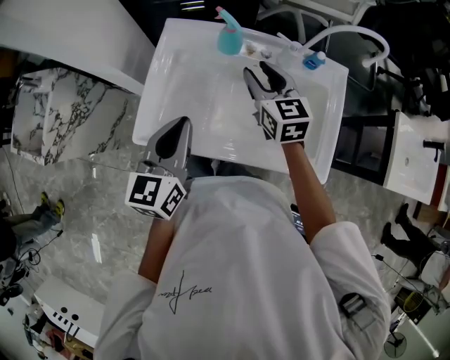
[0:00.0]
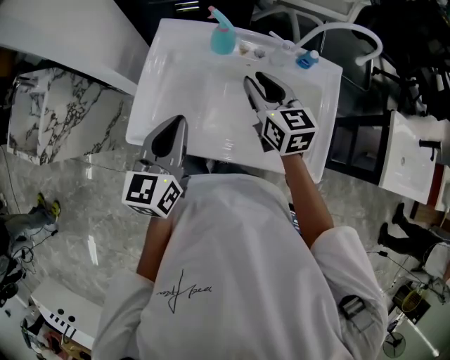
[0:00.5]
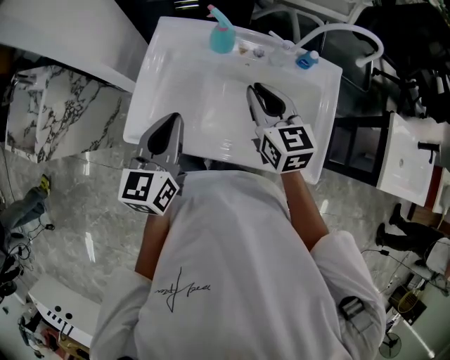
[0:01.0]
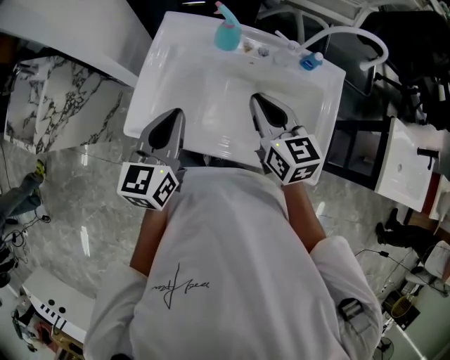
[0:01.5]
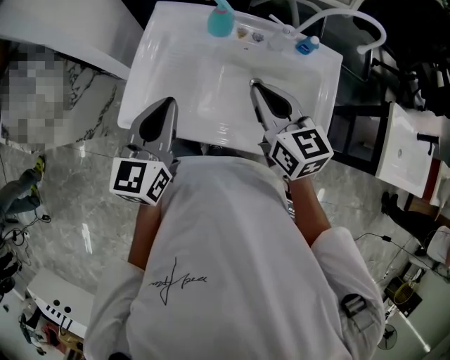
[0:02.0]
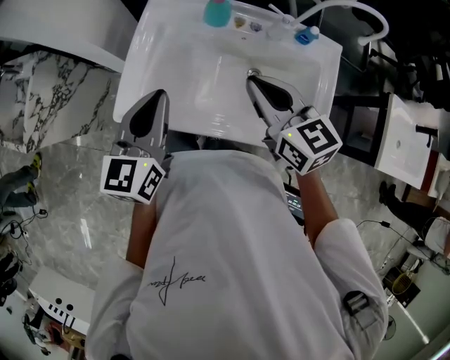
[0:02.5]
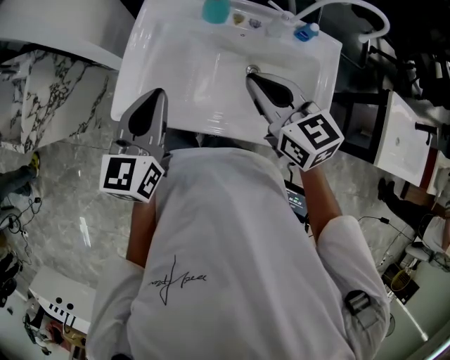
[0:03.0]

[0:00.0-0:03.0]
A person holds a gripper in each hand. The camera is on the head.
0:00.0 to 0:01.5: The right gripper moves backward, some 10 cm, and closes its fingers.
0:01.5 to 0:03.0: There are only small adjustments of the grippers.

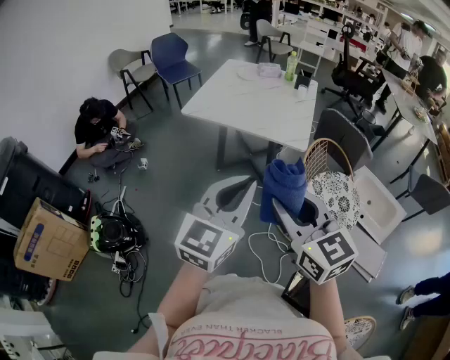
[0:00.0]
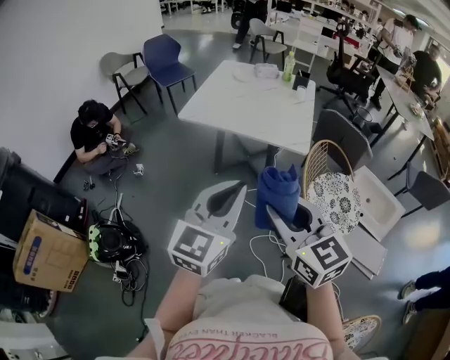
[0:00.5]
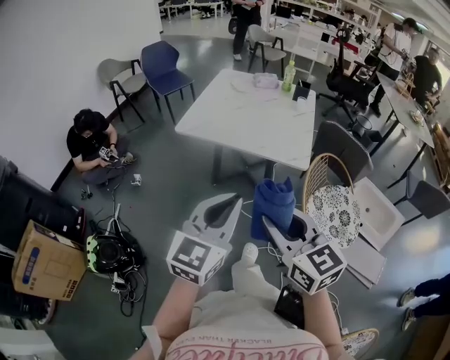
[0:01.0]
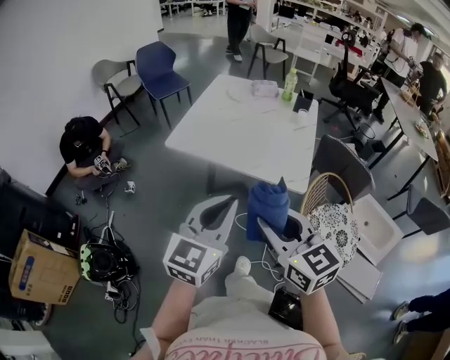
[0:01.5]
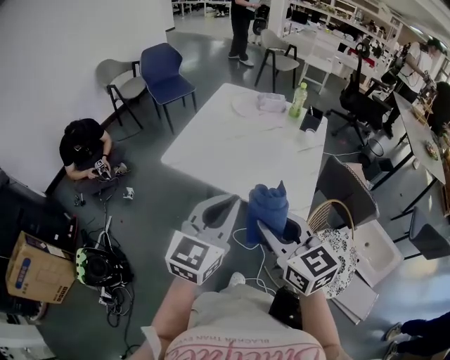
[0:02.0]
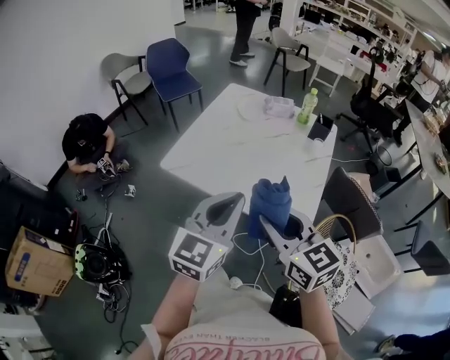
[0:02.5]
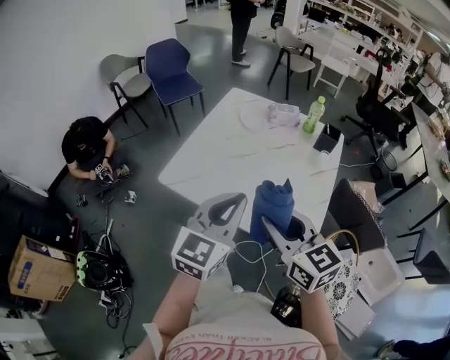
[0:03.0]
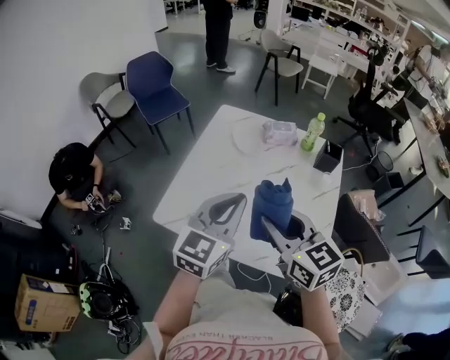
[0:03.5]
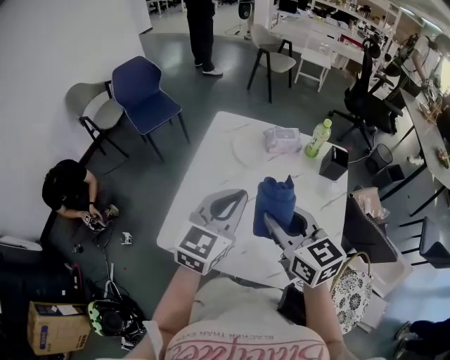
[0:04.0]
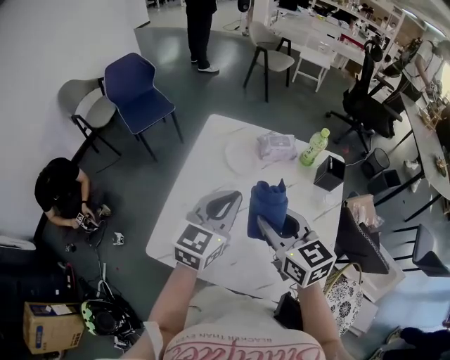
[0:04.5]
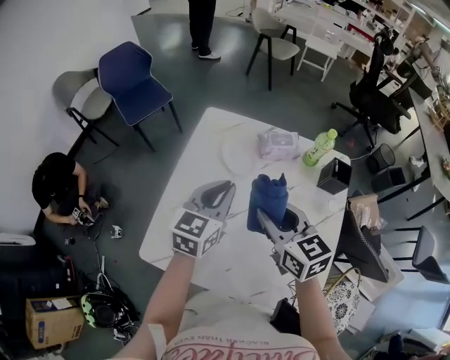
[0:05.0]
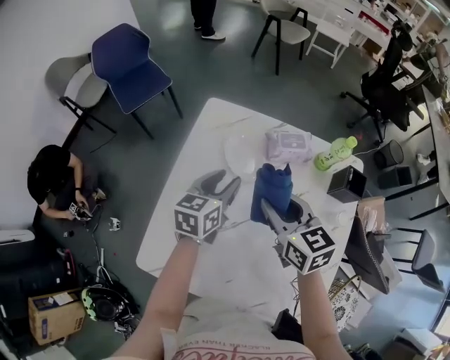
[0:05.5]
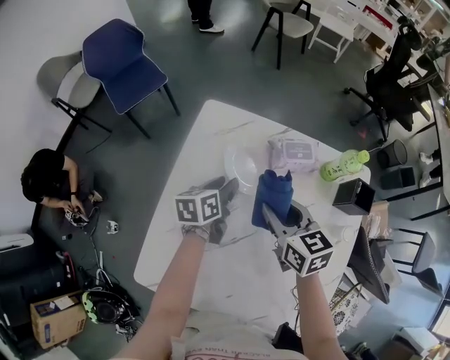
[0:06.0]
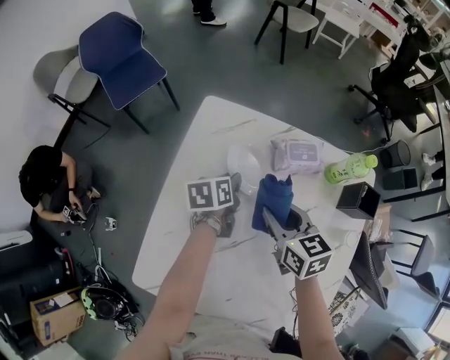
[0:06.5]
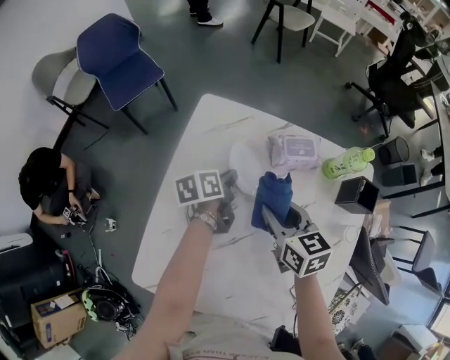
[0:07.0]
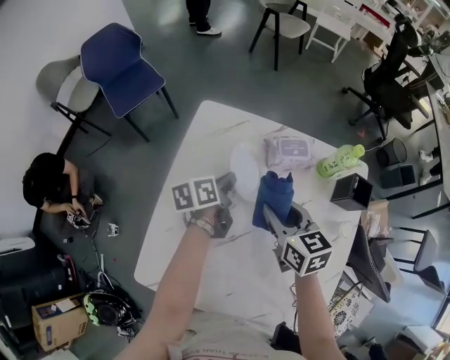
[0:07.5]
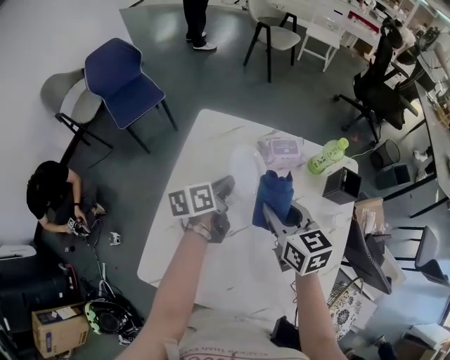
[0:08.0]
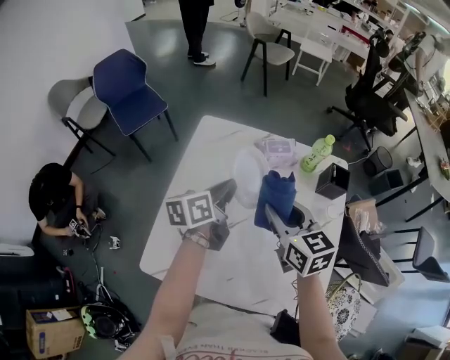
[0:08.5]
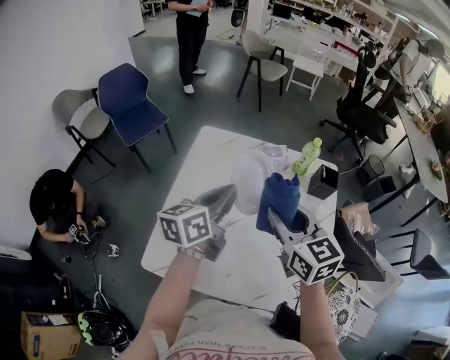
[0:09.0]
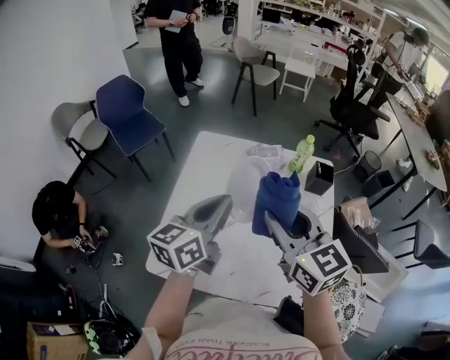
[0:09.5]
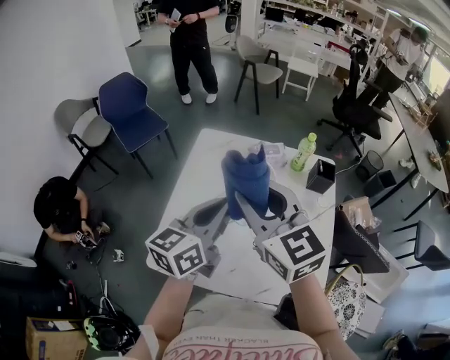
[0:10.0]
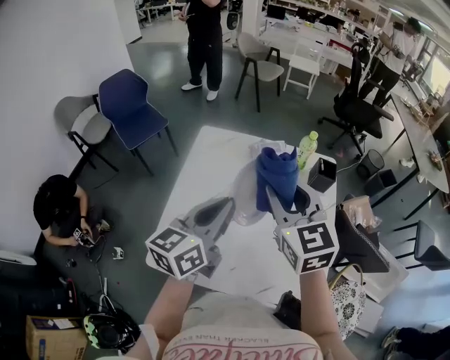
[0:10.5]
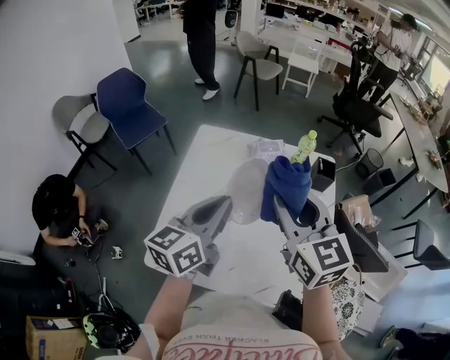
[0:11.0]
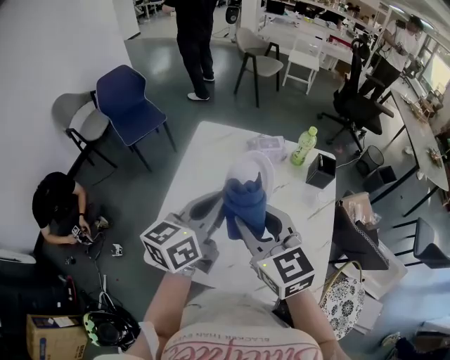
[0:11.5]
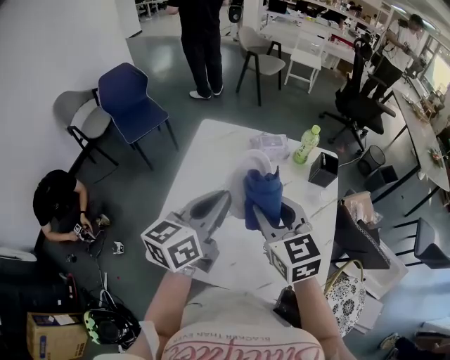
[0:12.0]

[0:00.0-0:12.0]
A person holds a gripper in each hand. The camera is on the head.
0:00.0 to 0:02.0: The two grippers go about 30 cm forward.
0:02.0 to 0:04.0: Both grippers travel together forward, approximately 40 cm.
0:04.0 to 0:06.0: Both grippers travel together forward and downward, some 35 cm. The left gripper twists about 50 degrees counterclockwise, seen from behind, and opens.
0:06.0 to 0:08.0: The left gripper travels upward by about 5 cm, and closes up, while the right gripper shifts by approximately 5 cm.
0:08.0 to 0:10.0: Both grippers travel together upward and backward, about 30 cm. The left gripper changes its angle by approximately 40 degrees, while the right gripper turns by approximately 30 degrees.
0:10.0 to 0:12.0: The right gripper goes about 10 cm downward.

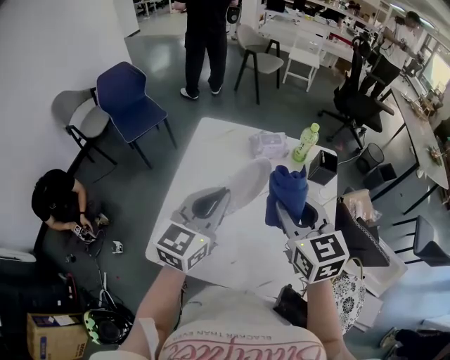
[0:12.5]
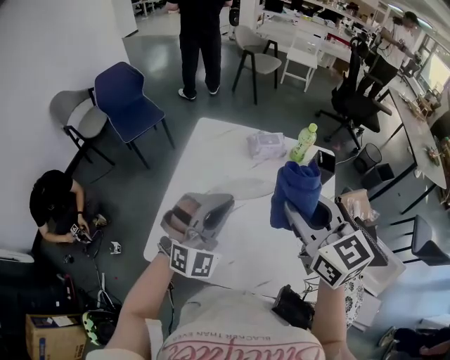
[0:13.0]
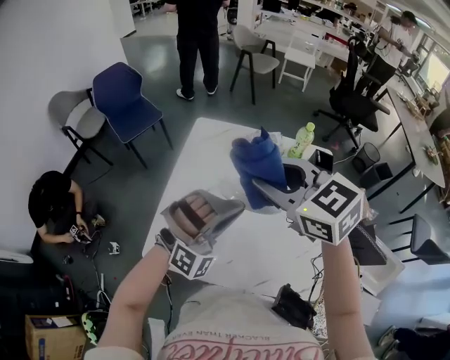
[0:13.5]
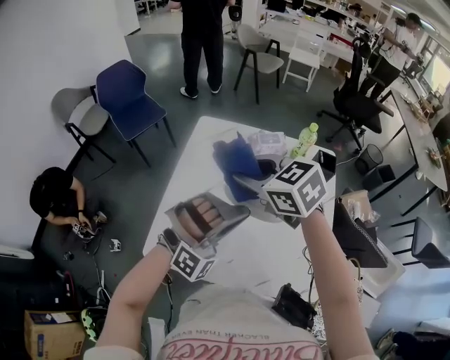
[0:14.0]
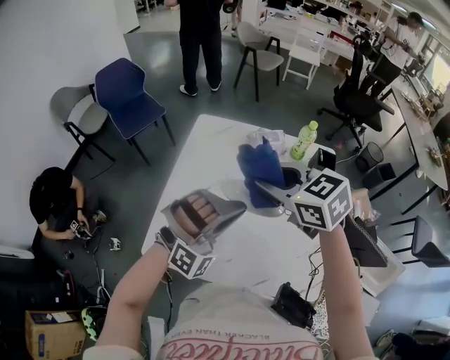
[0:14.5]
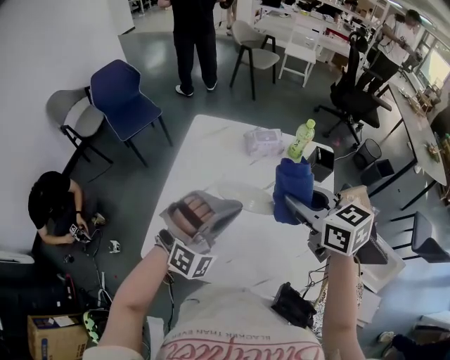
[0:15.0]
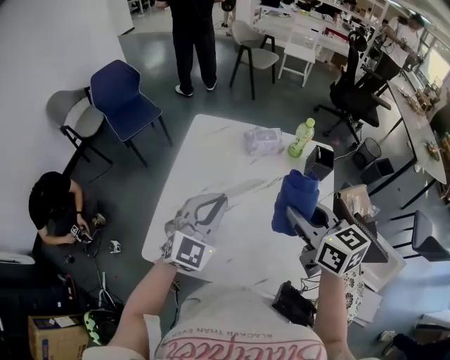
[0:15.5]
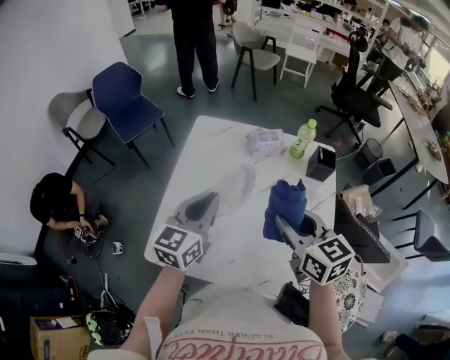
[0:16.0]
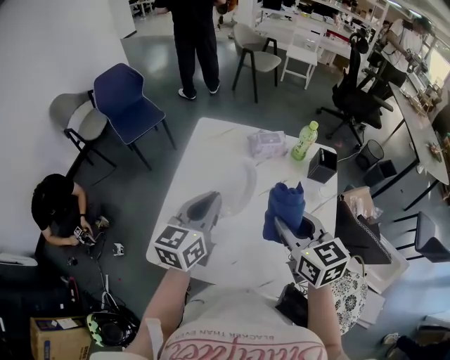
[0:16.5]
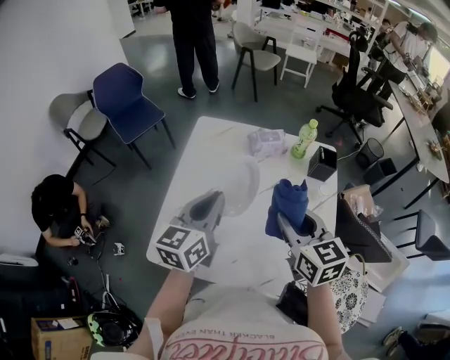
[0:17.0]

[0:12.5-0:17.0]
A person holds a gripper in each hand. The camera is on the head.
0:12.5 to 0:14.5: The left gripper travels to the right by approximately 5 cm, and rotates around the line of its fingers by about 90 degrees, clockwise from behind. The right gripper goes some 5 cm to the left and forward, and turns by roughly 30 degrees.
0:14.5 to 0:17.0: The left gripper is displaced to the left by roughly 10 cm, and rotates around the line of its fingers by approximately 100 degrees, counterclockwise from behind; the right gripper is displaced to the right, backward and downward by about 10 cm, and turns by some 30 degrees.

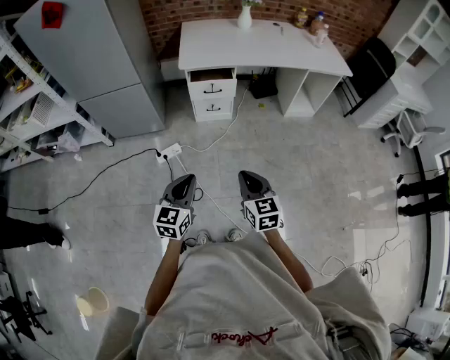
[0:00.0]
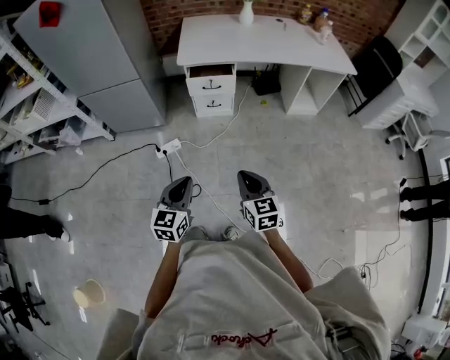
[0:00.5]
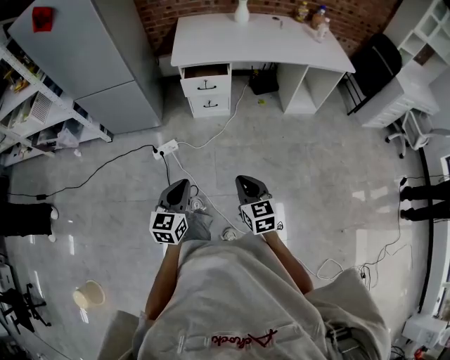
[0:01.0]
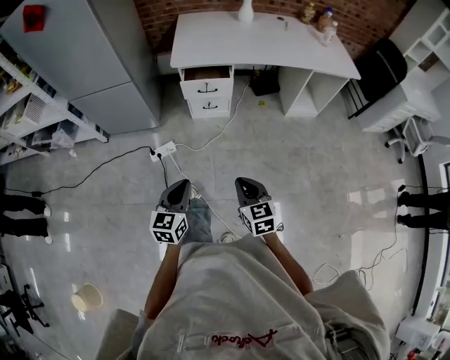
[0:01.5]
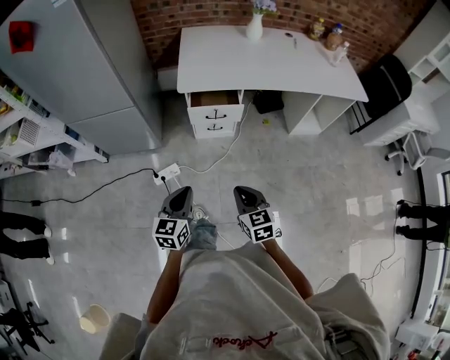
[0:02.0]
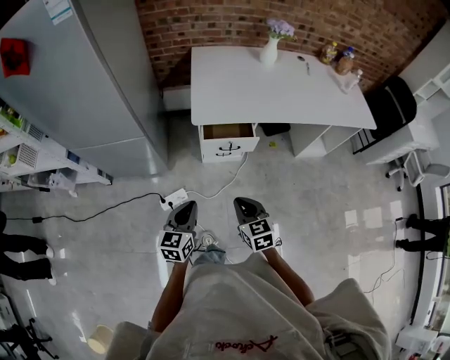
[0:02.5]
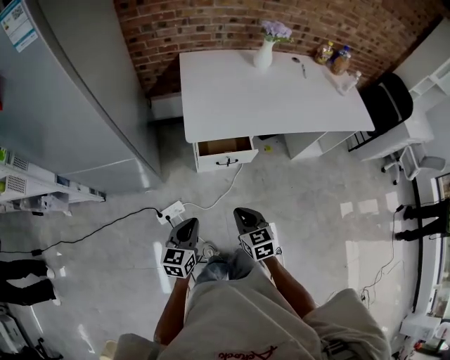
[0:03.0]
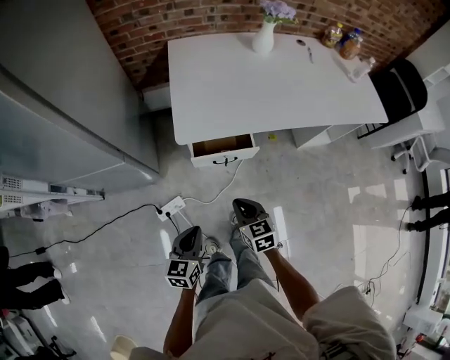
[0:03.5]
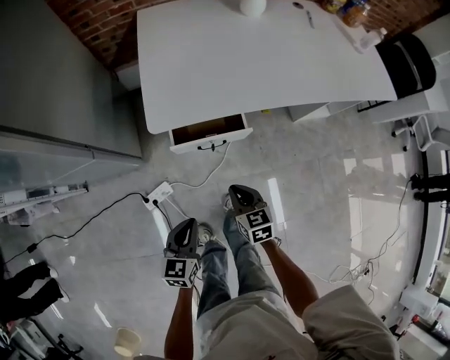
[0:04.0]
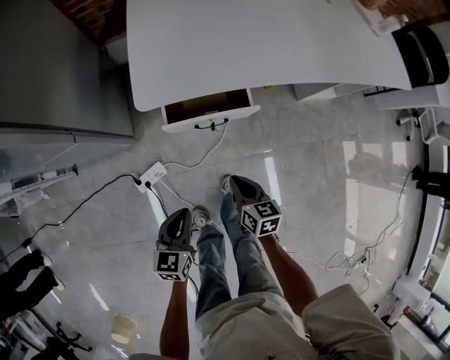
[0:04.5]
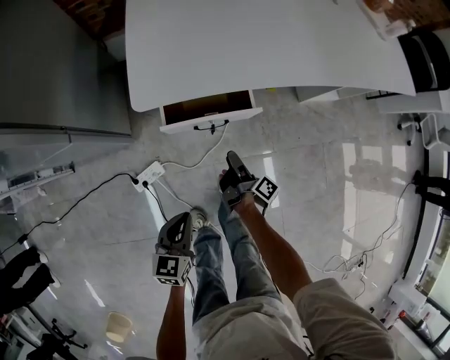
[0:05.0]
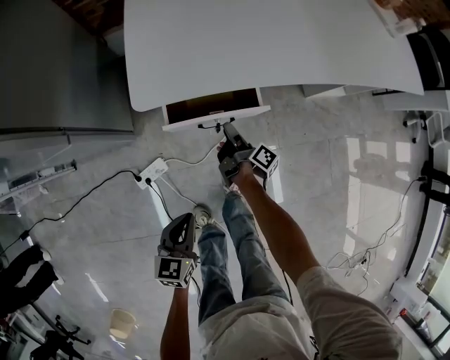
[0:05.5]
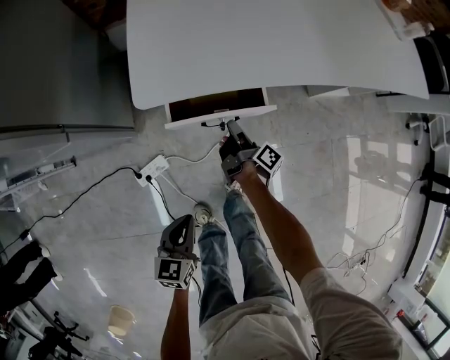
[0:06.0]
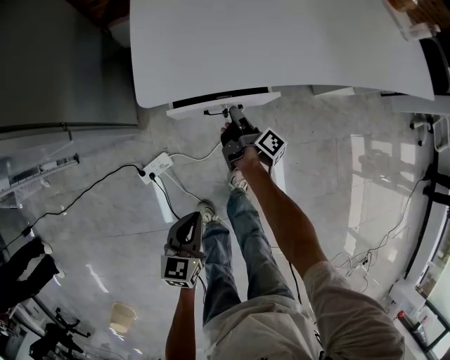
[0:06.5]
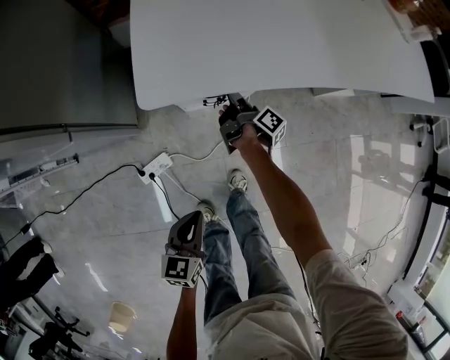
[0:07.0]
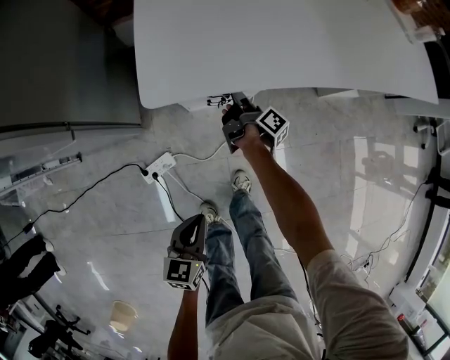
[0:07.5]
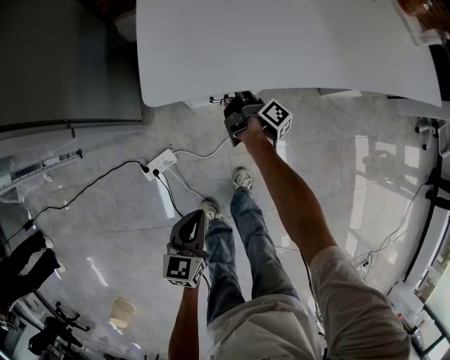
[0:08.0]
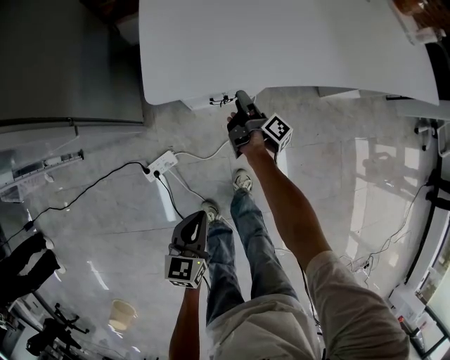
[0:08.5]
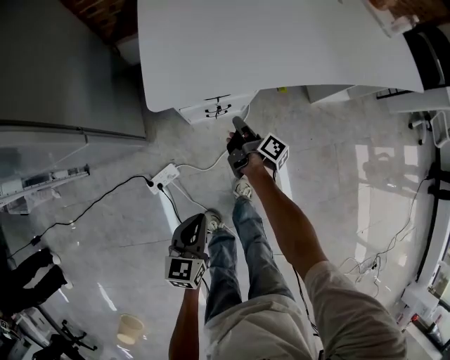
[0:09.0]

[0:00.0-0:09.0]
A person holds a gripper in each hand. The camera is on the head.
0:00.0 to 0:02.0: The grippers both shift forward by some 20 cm.
0:02.0 to 0:04.5: The two grippers go about 30 cm forward and downward. The right gripper changes its angle by roughly 30 degrees.
0:04.5 to 0:07.0: The right gripper shifts about 25 cm forward, twists about 60 degrees clockwise, seen from behind, and opens, then closes again.
0:07.0 to 0:09.0: The right gripper heads backward, covering approximately 10 cm, and opens and closes again.
